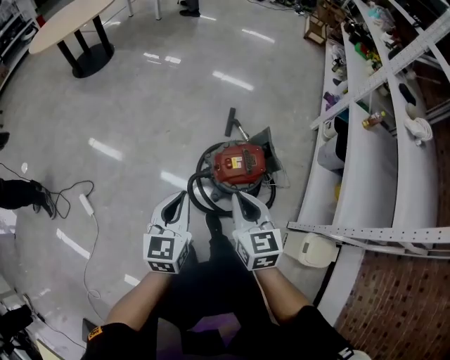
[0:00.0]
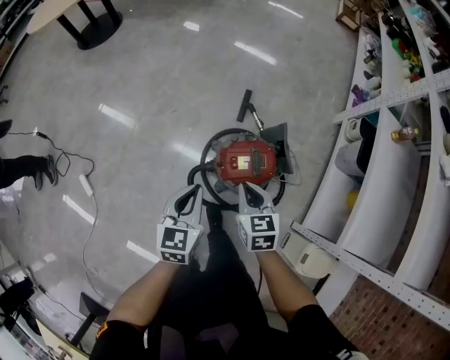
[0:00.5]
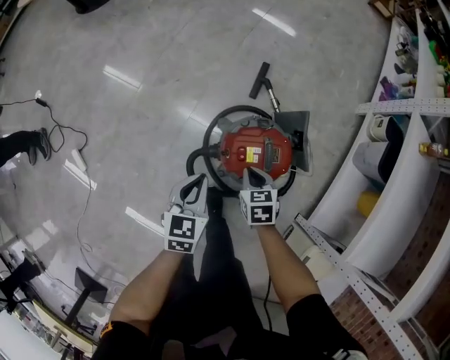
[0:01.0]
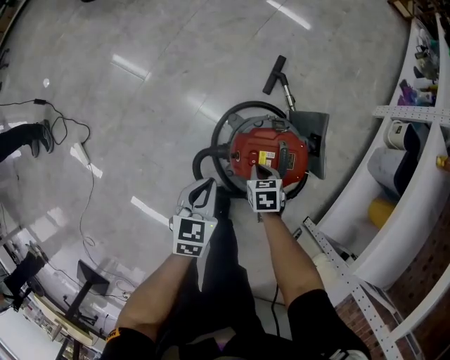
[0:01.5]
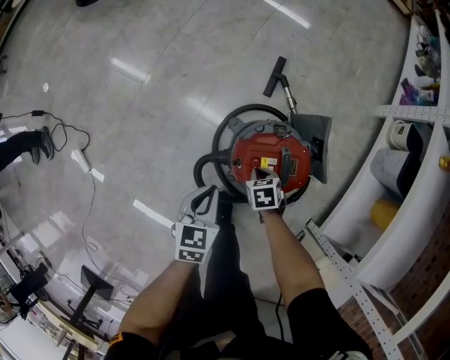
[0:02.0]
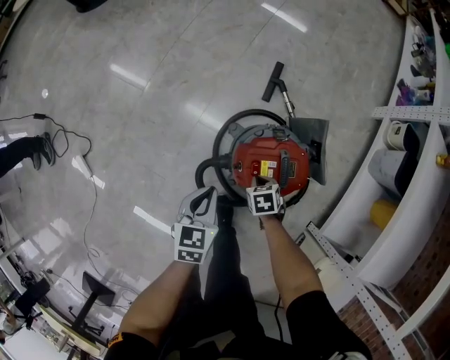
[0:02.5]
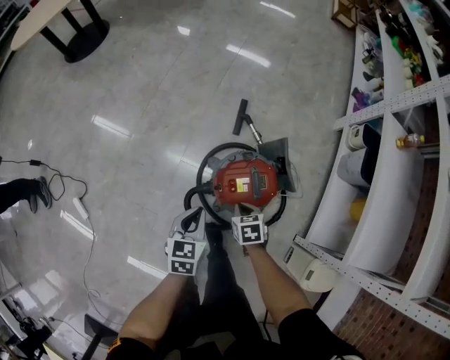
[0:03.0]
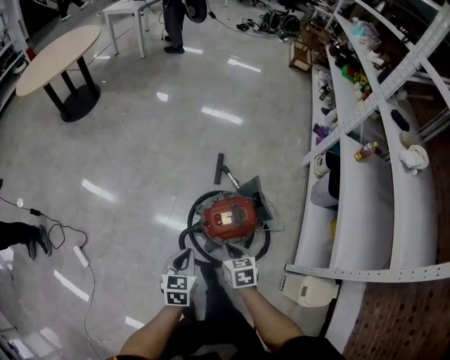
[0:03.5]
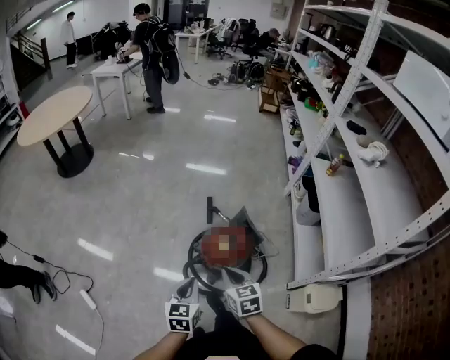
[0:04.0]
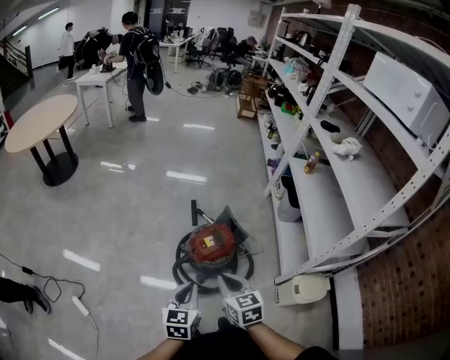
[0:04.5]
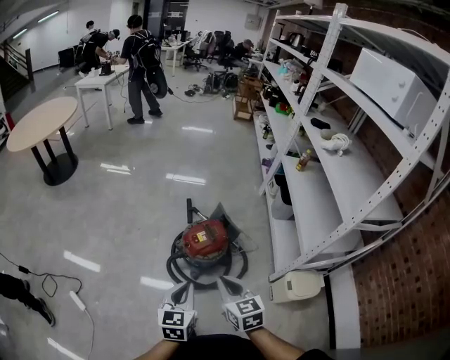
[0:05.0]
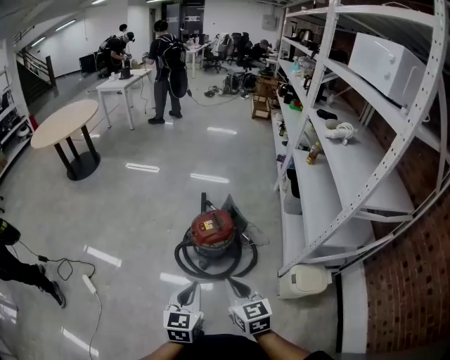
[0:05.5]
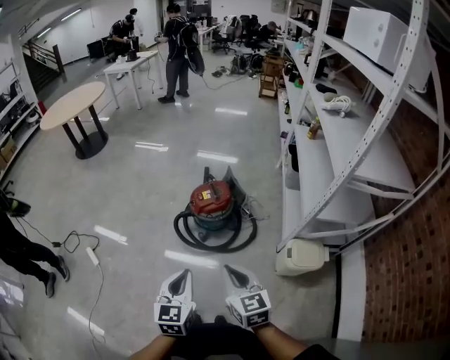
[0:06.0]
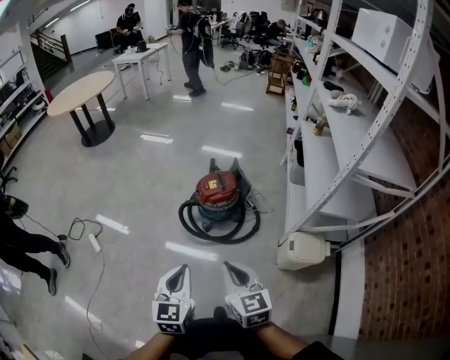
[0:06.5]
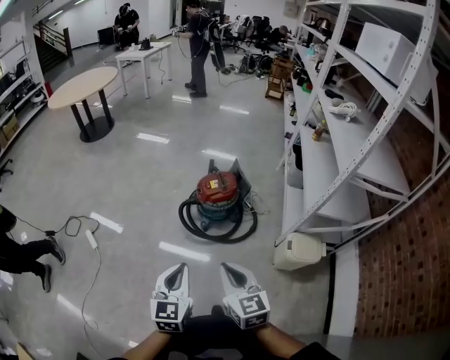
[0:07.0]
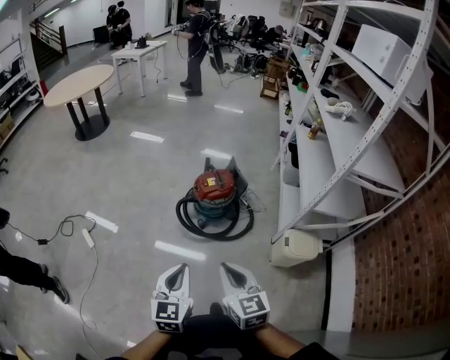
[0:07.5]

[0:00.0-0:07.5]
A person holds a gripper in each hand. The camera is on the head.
0:00.0 to 0:02.0: The grippers both shift downward by about 40 cm. The right gripper tilts its fingers about 50 degrees downward, while the left gripper changes its angle by some 30 degrees.
0:02.0 to 0:04.0: The left gripper shifts roughly 25 cm upward, and rotates roughly 20 degrees, while the right gripper moves upward, some 40 cm, and points its fingers roughly 40 degrees further upward.
0:04.0 to 0:05.5: The left gripper moves backward, to the right and upward, approximately 25 cm; the right gripper heads backward, upward and to the right, covering roughly 25 cm.
0:05.5 to 0:07.5: The two grippers go some 20 cm backward.

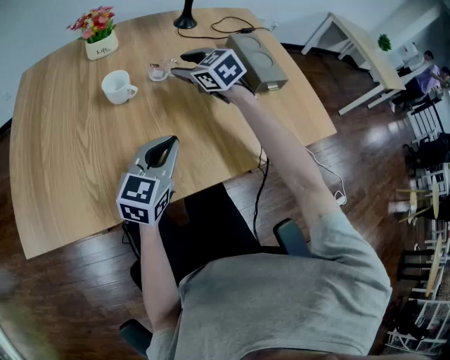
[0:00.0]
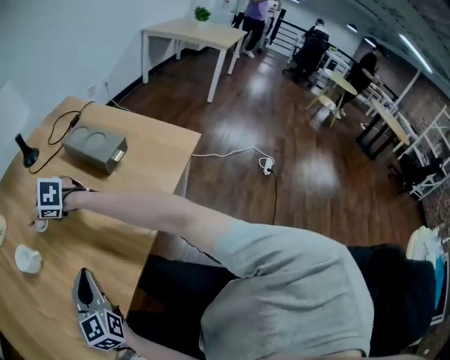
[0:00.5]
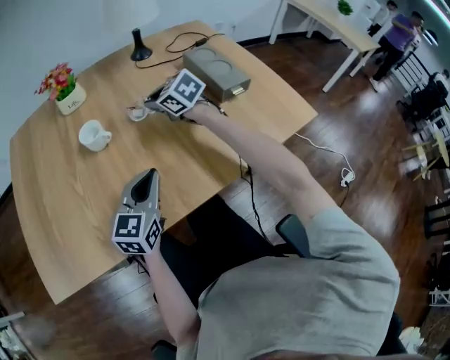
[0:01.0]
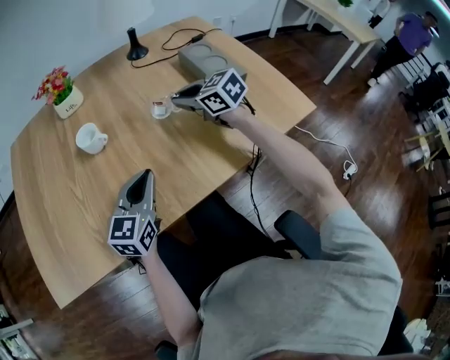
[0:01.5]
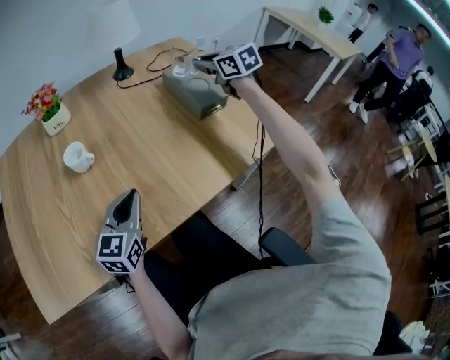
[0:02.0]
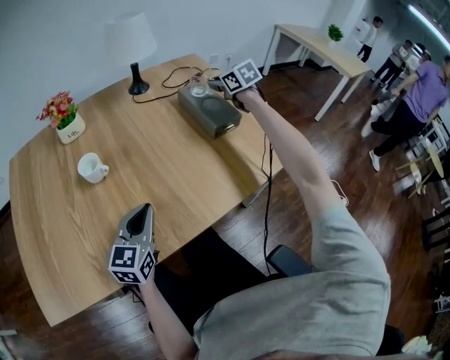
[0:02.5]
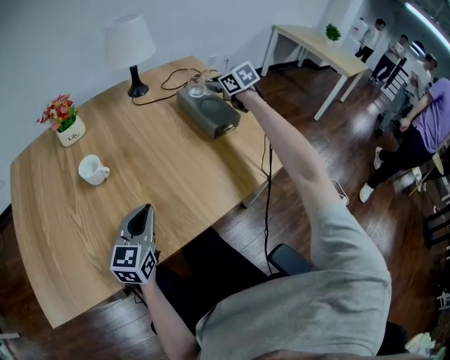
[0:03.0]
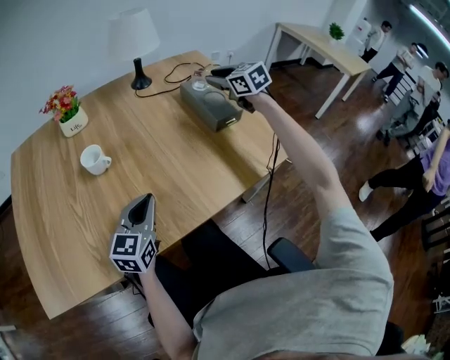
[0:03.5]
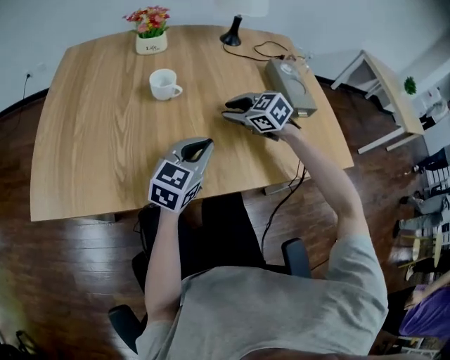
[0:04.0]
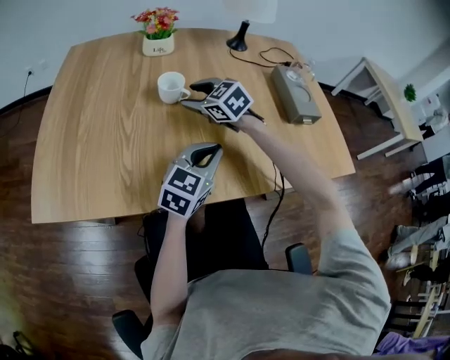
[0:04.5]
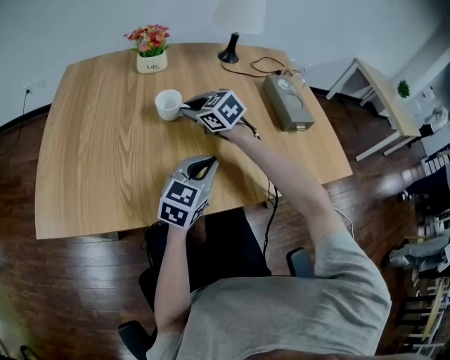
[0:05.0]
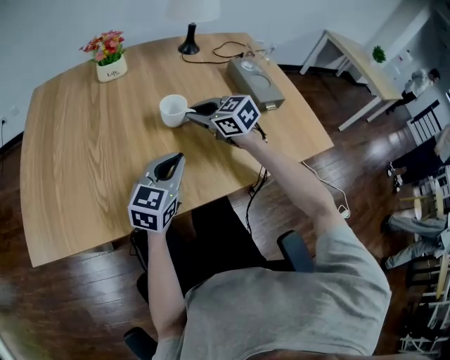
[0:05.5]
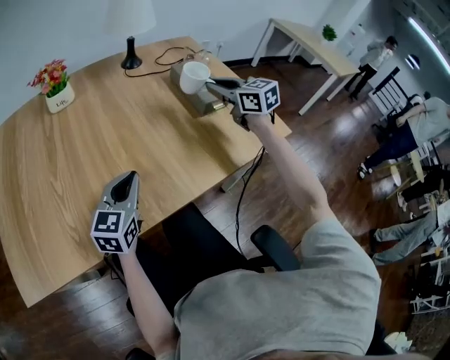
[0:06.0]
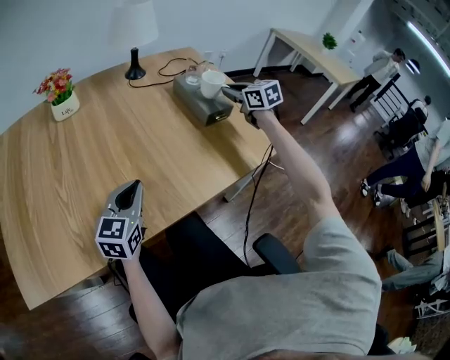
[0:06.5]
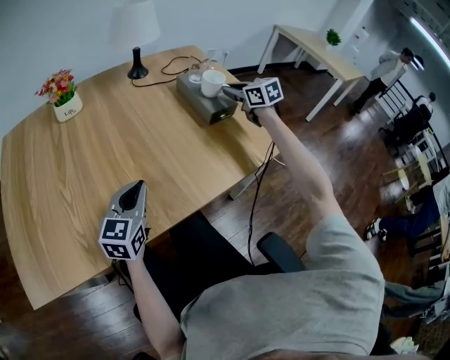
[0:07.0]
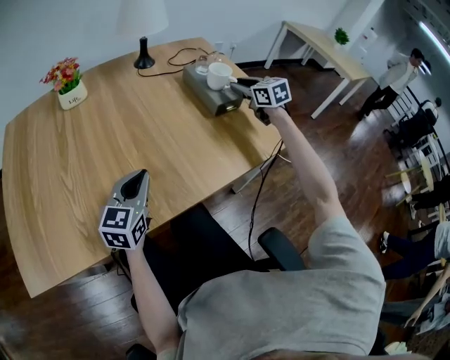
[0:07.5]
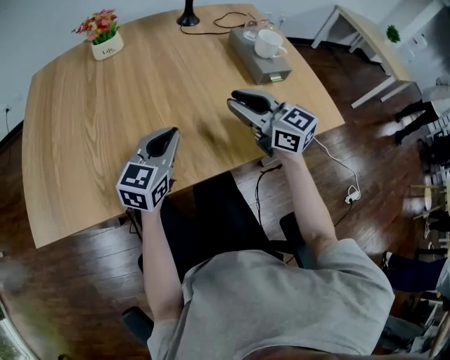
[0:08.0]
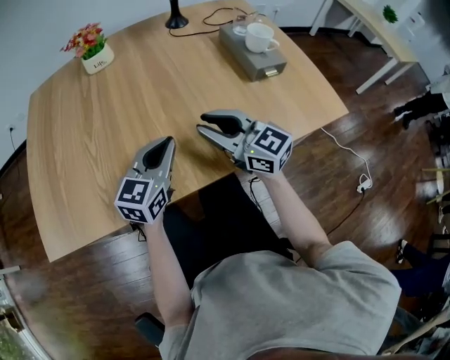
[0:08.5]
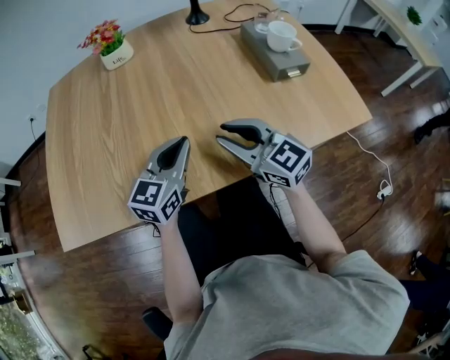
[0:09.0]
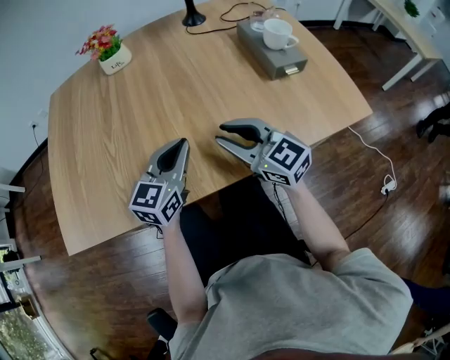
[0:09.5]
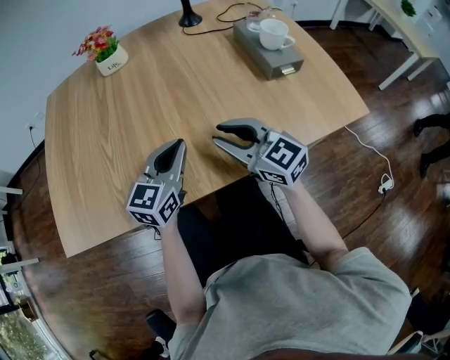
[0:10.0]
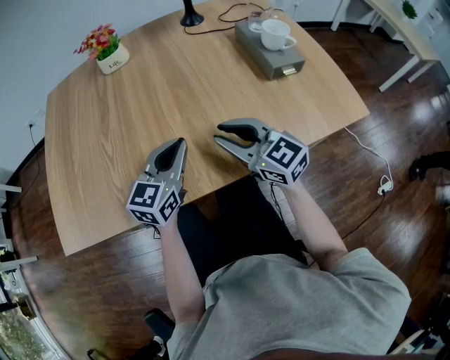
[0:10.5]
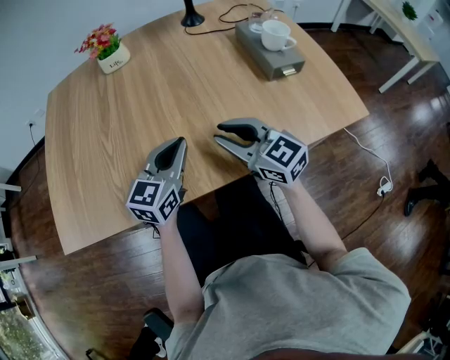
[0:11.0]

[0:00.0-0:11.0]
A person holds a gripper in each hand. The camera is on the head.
0:00.0 to 0:02.0: The right gripper shifts approximately 25 cm to the right and upward, swivels roughly 20 degrees, and closes.
0:03.5 to 0:05.5: The right gripper is displaced to the left, downward and backward by about 30 cm, rotates about 30 degrees, and opens, then closes again.
0:05.5 to 0:07.5: The right gripper shifts some 30 cm to the right, changes its angle by some 30 degrees, and opens.
0:07.5 to 0:09.0: The right gripper travels to the left and backward by some 35 cm, and turns by about 40 degrees.
0:09.0 to 0:11.0: The two grippers keep their place.

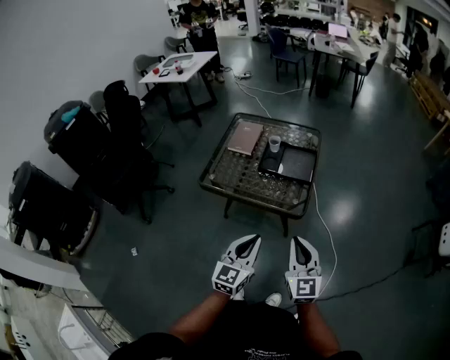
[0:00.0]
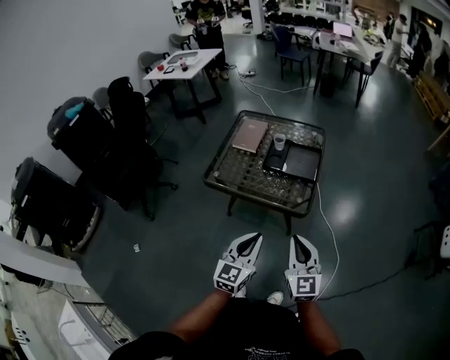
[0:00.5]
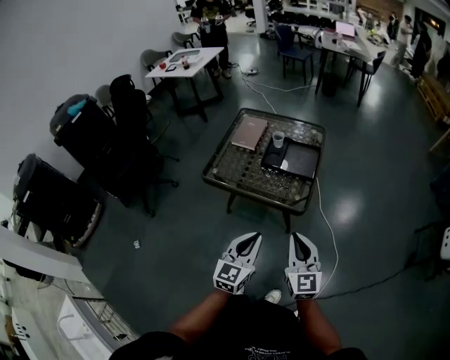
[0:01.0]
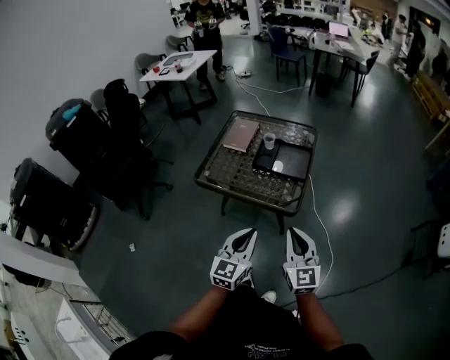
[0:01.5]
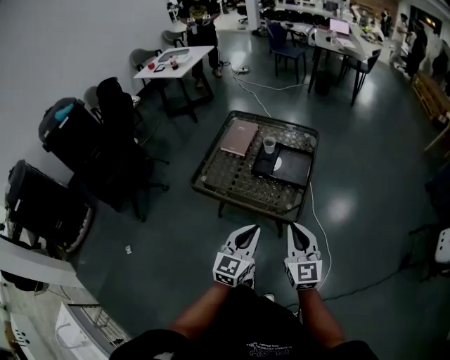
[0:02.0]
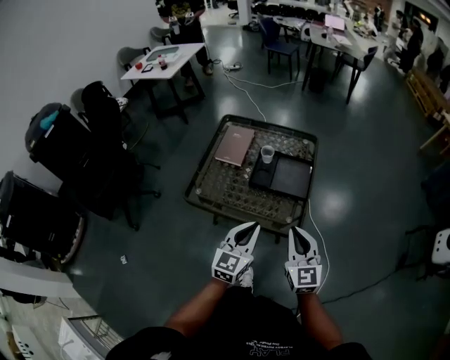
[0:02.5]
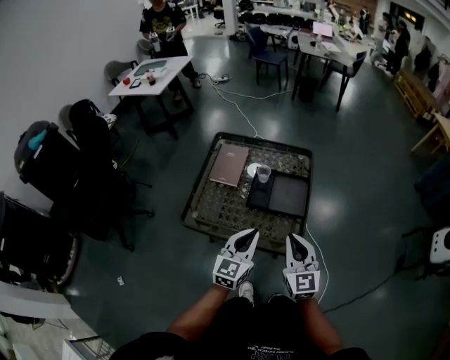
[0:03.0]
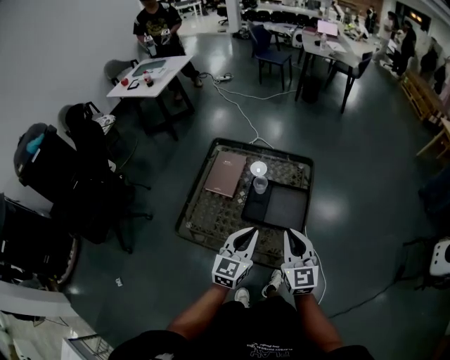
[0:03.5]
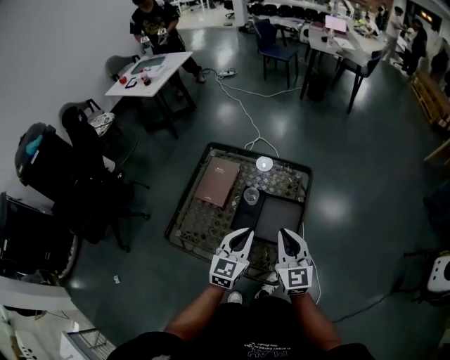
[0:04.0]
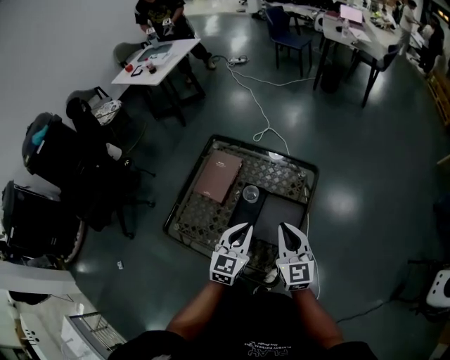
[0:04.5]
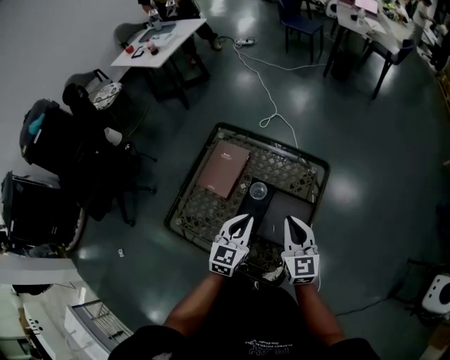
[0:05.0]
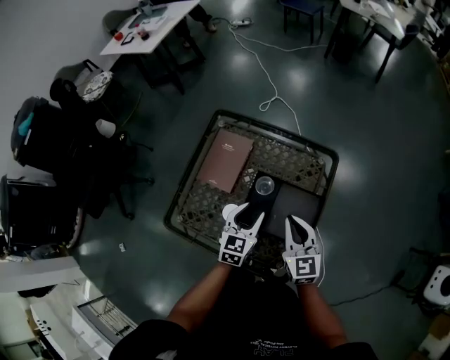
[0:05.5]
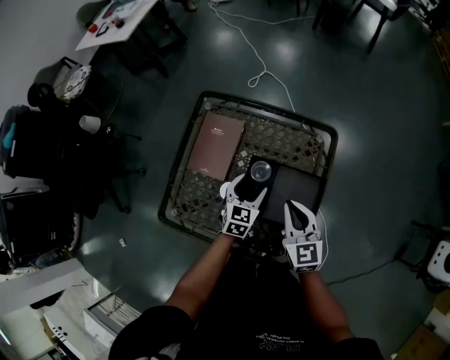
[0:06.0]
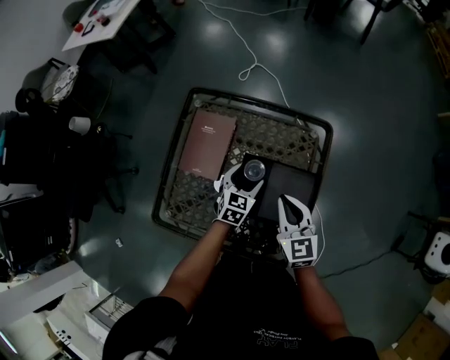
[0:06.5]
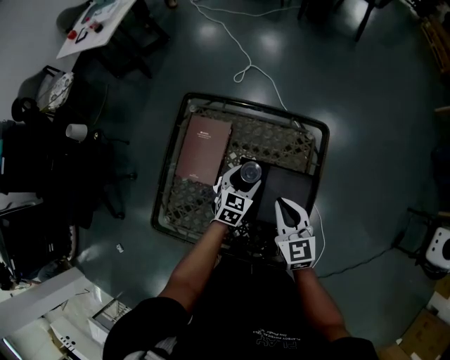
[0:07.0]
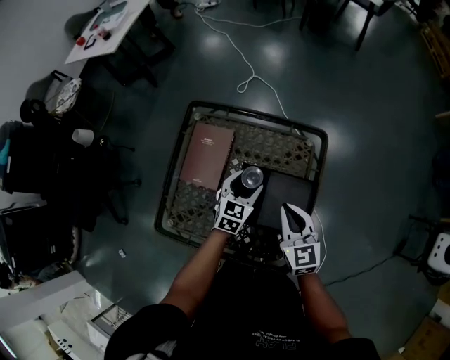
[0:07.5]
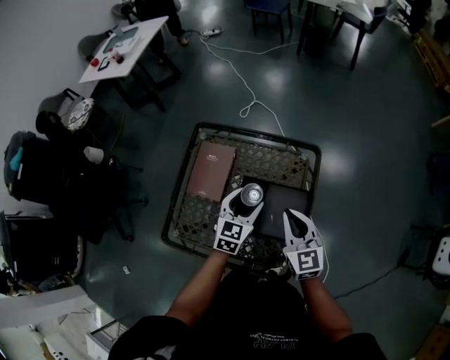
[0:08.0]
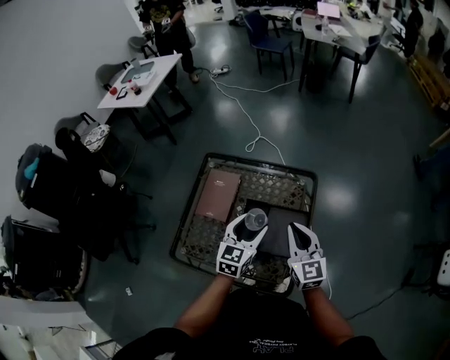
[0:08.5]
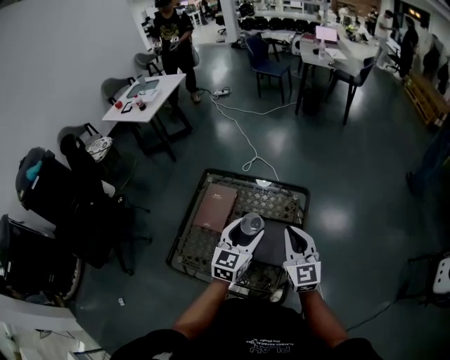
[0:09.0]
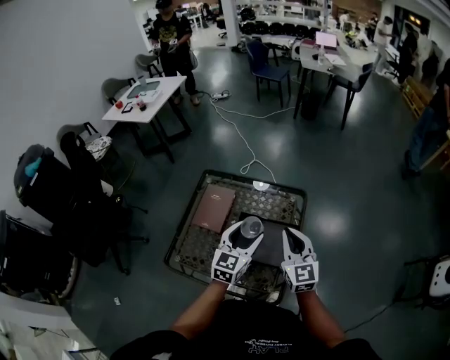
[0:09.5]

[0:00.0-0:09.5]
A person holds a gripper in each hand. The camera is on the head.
0:00.0 to 0:02.0: Both grippers travel together forward, roughly 10 cm.
0:02.0 to 0:04.0: The two grippers go some 30 cm forward.
0:04.0 to 0:05.5: The left gripper goes some 15 cm downward and forward, and opens up. Meanwhile the right gripper travels forward and downward by roughly 10 cm.
0:05.5 to 0:07.5: The left gripper heads forward, covering approximately 10 cm, and opens its fingers.
0:07.5 to 0:09.5: The right gripper travels upward by approximately 15 cm. Meanwhile the left gripper moves upward and backward, roughly 25 cm, and changes its angle by some 20 degrees.
